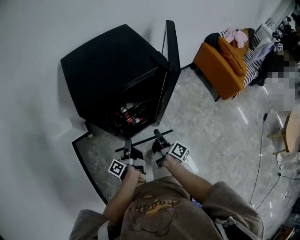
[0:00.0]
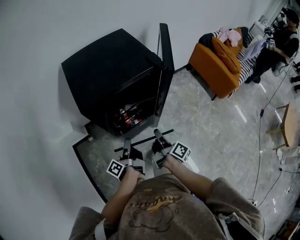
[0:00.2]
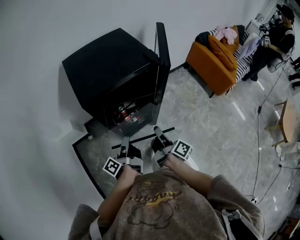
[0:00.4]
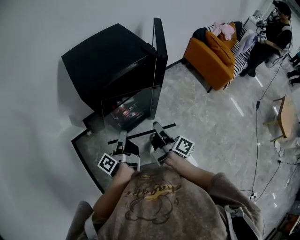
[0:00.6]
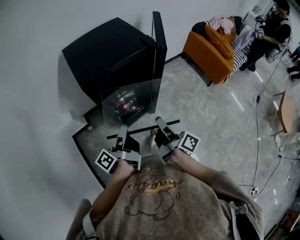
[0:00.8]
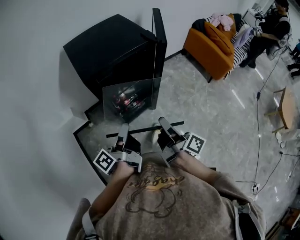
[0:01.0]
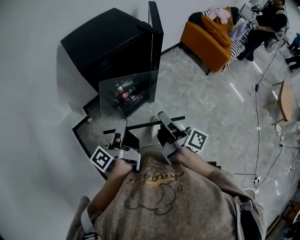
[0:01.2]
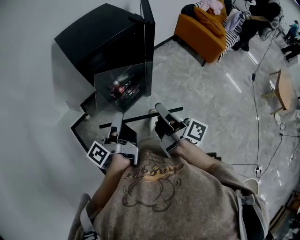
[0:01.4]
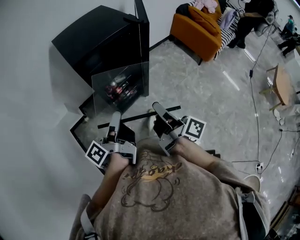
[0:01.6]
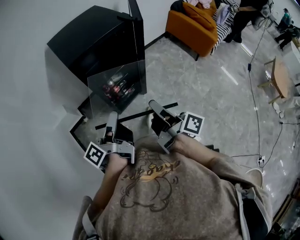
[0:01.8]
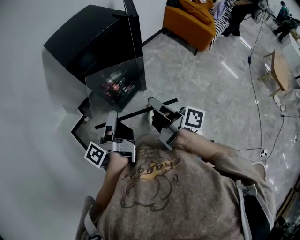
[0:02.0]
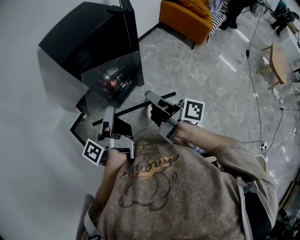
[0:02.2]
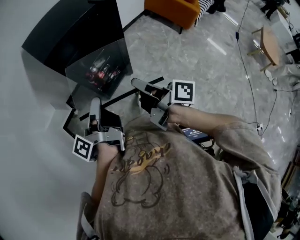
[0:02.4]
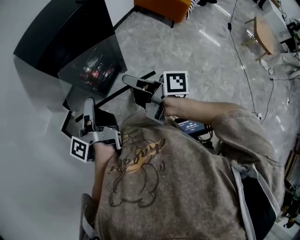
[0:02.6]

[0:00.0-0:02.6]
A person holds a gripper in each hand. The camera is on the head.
0:00.0 to 0:01.2: The grippers both shift upward and backward by about 25 cm. The left gripper swivels some 20 degrees.
0:01.2 to 0:02.6: There are only small adjustments of the grippers.

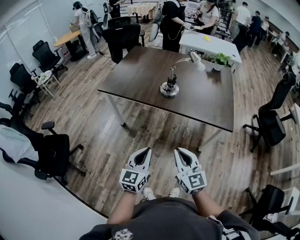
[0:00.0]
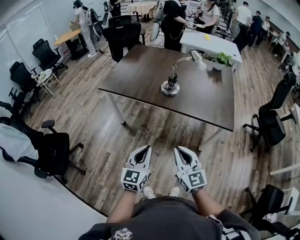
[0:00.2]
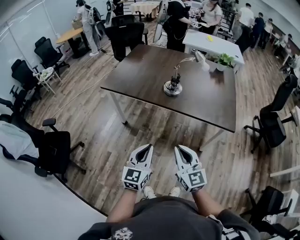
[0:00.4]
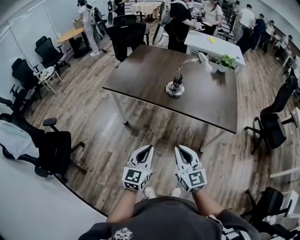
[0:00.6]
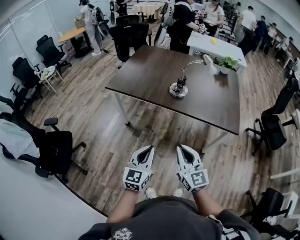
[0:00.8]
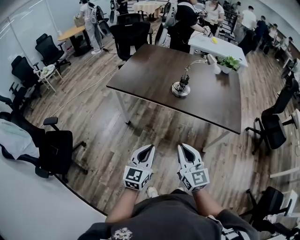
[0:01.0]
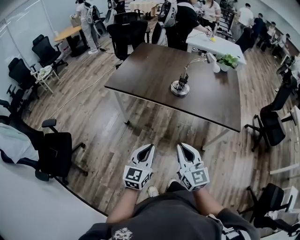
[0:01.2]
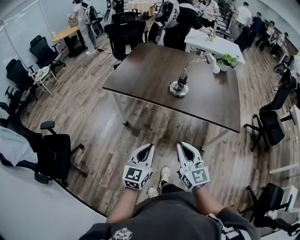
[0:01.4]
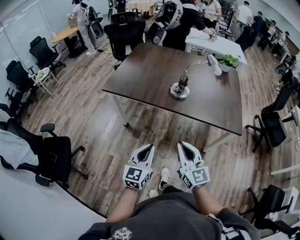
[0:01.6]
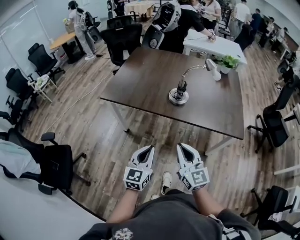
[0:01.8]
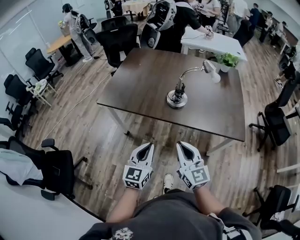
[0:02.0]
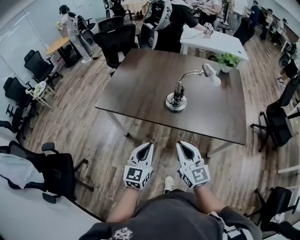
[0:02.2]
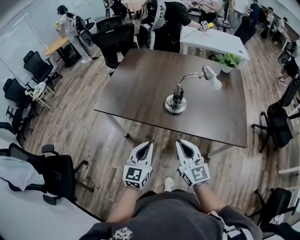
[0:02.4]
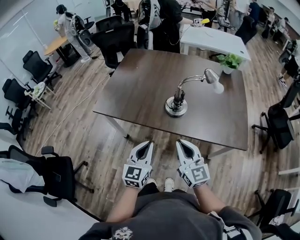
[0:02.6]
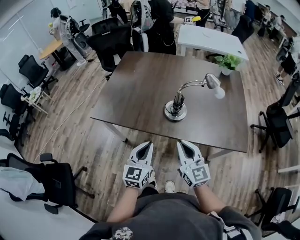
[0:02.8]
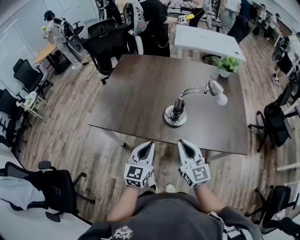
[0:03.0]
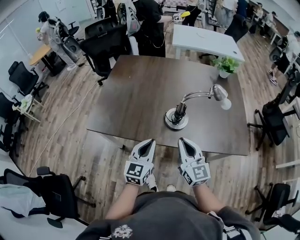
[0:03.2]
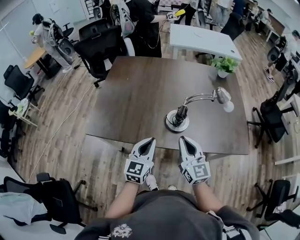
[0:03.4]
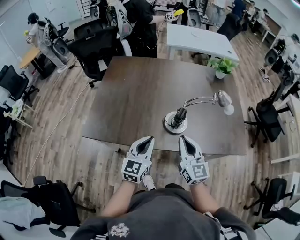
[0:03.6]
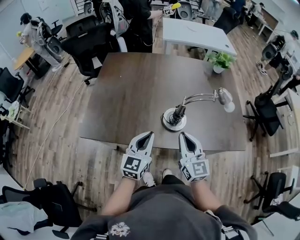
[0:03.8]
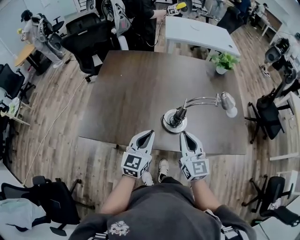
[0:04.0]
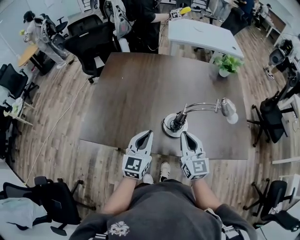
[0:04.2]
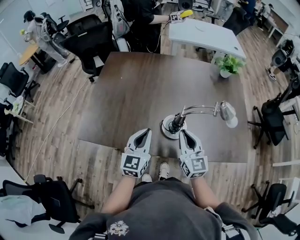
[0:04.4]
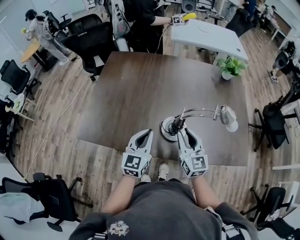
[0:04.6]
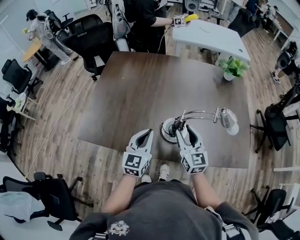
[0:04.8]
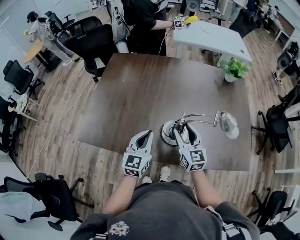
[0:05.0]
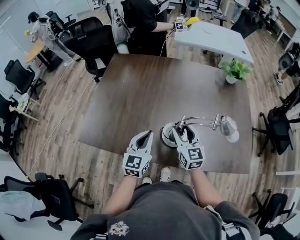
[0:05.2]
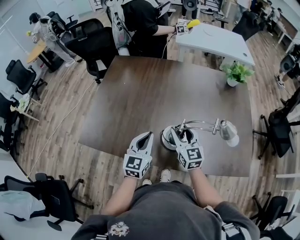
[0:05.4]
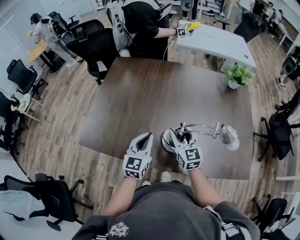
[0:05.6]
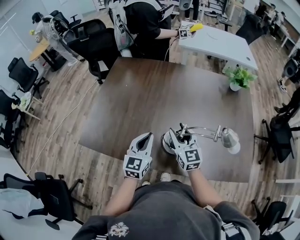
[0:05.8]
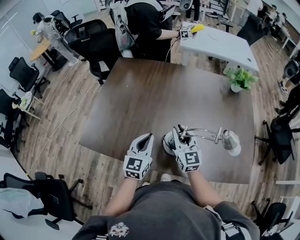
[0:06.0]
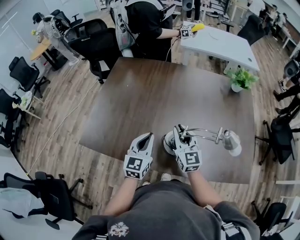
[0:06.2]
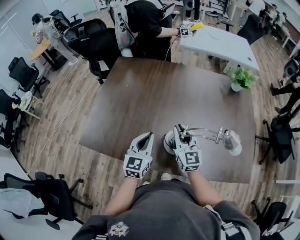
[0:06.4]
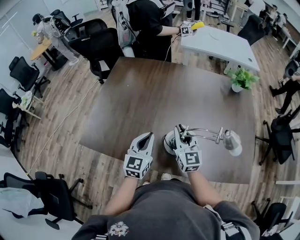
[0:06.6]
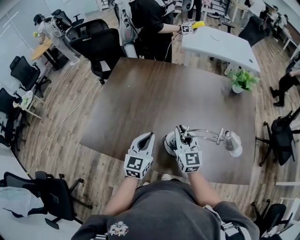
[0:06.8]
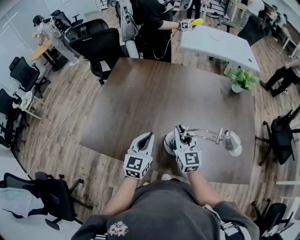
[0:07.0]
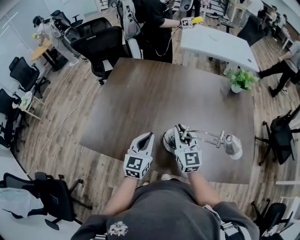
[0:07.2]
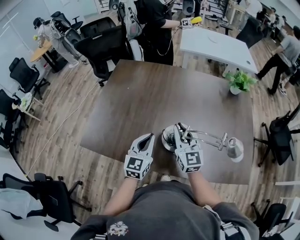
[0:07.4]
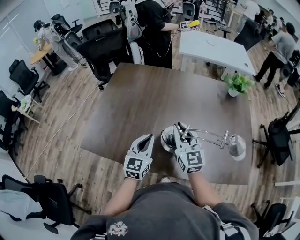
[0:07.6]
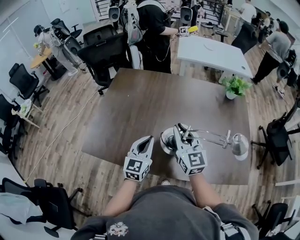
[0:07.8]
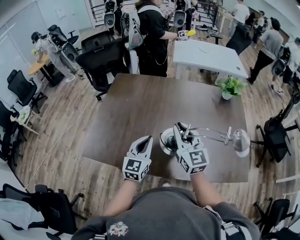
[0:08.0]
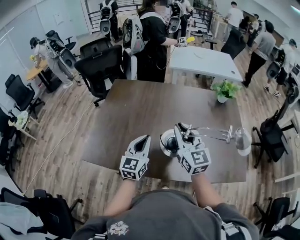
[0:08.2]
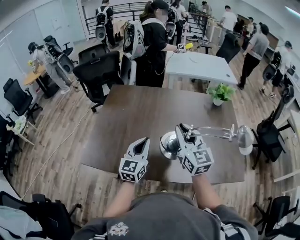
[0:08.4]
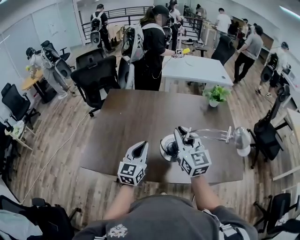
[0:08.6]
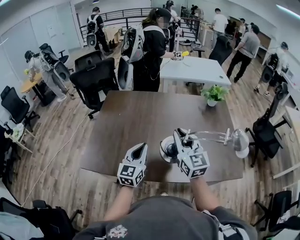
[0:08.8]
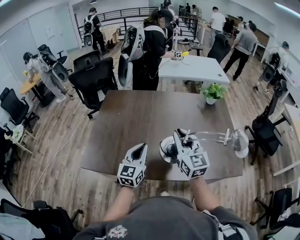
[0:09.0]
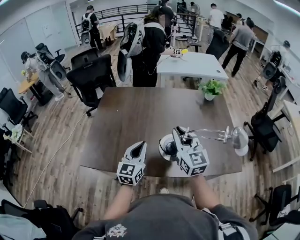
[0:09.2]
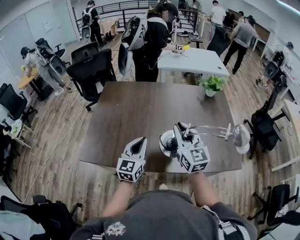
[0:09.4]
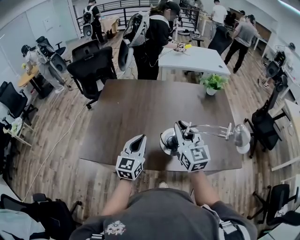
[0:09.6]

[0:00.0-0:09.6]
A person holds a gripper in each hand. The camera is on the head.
0:00.0 to 0:01.6: The grippers both shift to the left and forward by some 10 cm.
0:01.6 to 0:03.2: Both grippers move forward, approximately 30 cm.
0:03.2 to 0:04.8: Both grippers move forward, approximately 15 cm. The right gripper opens its fingers.
0:04.8 to 0:06.4: The right gripper shifts approximately 10 cm forward, and closes. The left gripper goes roughly 5 cm forward.
0:06.4 to 0:08.0: The left gripper travels upward by approximately 5 cm, while the right gripper moves upward, roughly 10 cm.
0:08.0 to 0:09.6: The grippers both shift backward by about 5 cm.

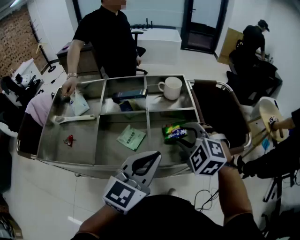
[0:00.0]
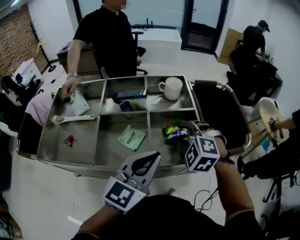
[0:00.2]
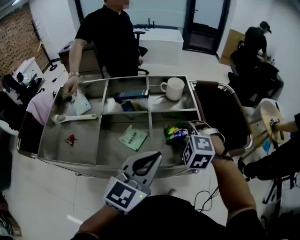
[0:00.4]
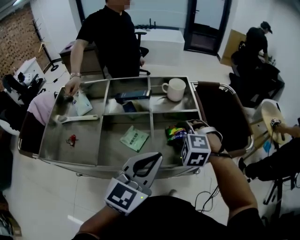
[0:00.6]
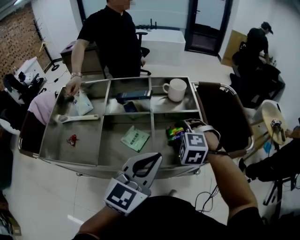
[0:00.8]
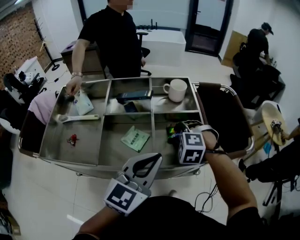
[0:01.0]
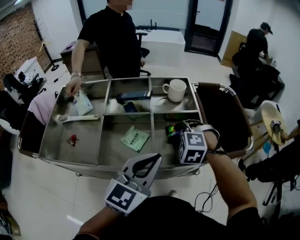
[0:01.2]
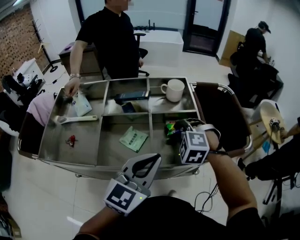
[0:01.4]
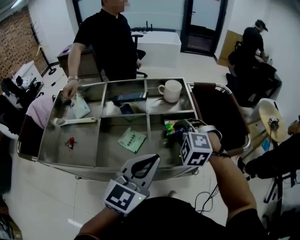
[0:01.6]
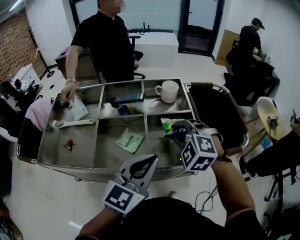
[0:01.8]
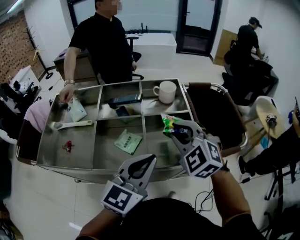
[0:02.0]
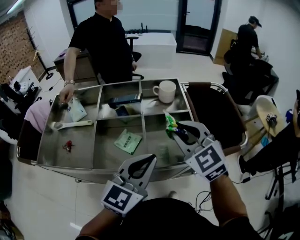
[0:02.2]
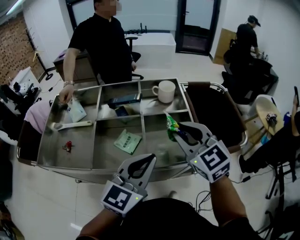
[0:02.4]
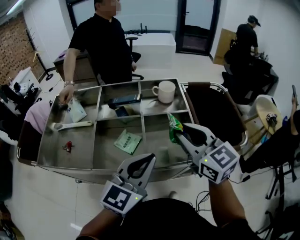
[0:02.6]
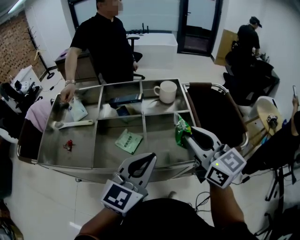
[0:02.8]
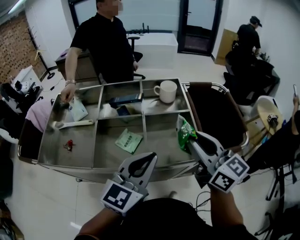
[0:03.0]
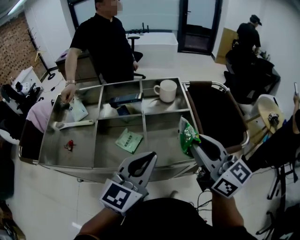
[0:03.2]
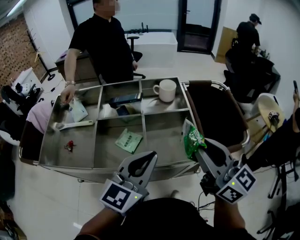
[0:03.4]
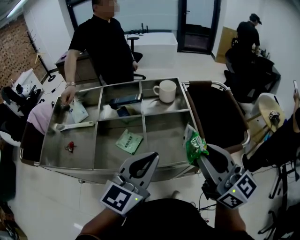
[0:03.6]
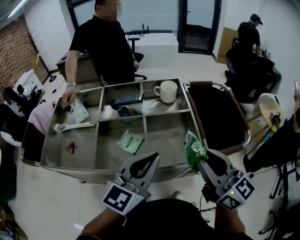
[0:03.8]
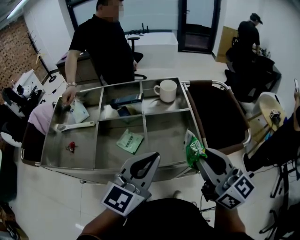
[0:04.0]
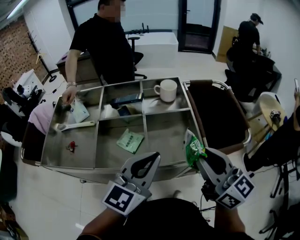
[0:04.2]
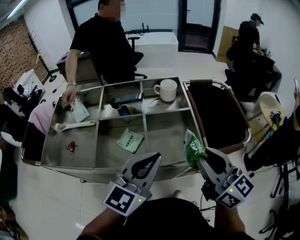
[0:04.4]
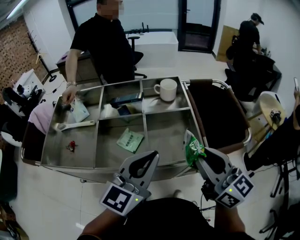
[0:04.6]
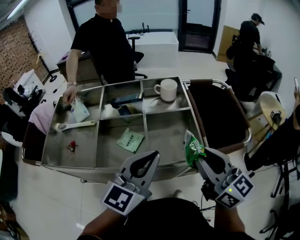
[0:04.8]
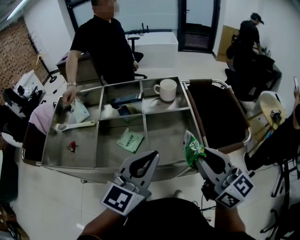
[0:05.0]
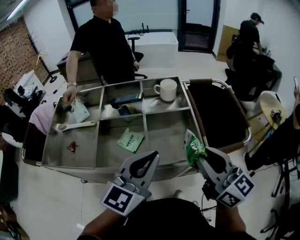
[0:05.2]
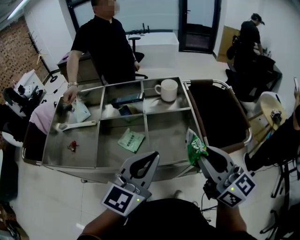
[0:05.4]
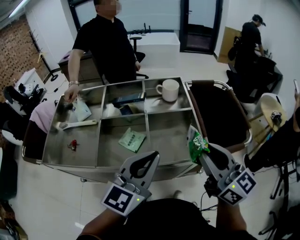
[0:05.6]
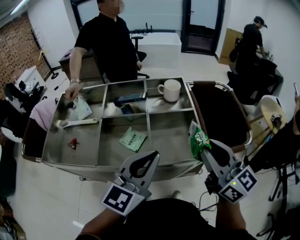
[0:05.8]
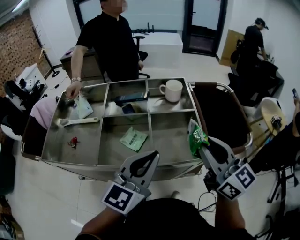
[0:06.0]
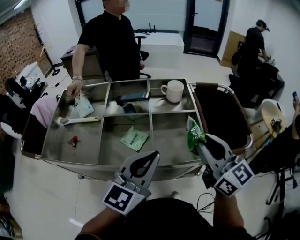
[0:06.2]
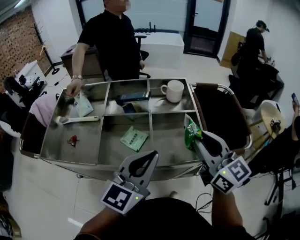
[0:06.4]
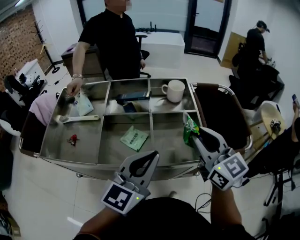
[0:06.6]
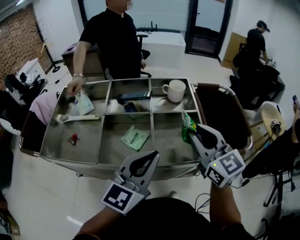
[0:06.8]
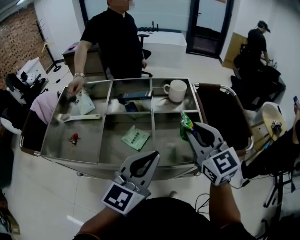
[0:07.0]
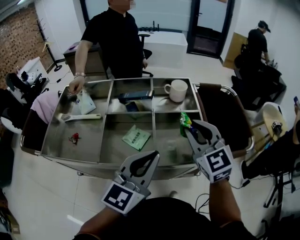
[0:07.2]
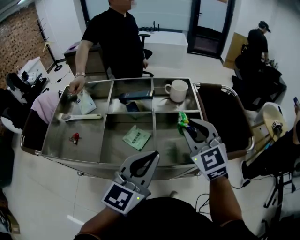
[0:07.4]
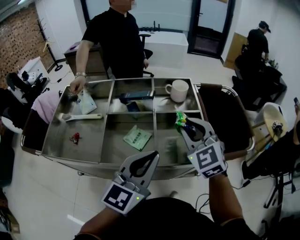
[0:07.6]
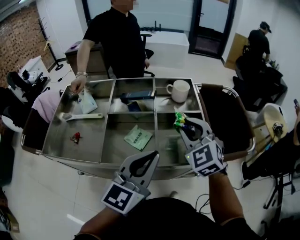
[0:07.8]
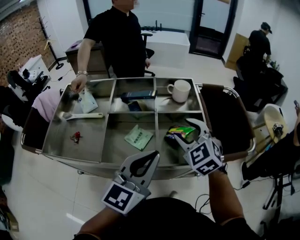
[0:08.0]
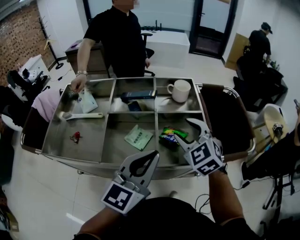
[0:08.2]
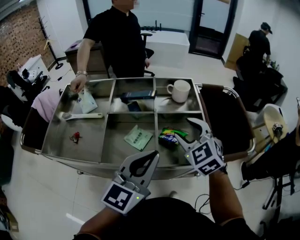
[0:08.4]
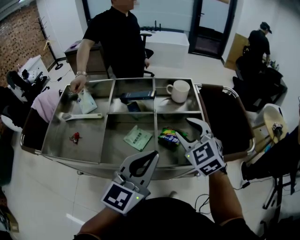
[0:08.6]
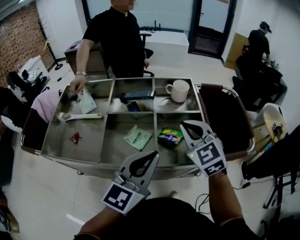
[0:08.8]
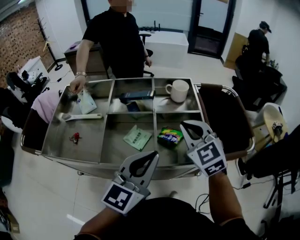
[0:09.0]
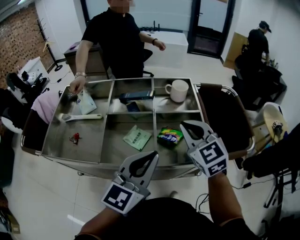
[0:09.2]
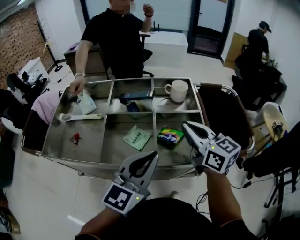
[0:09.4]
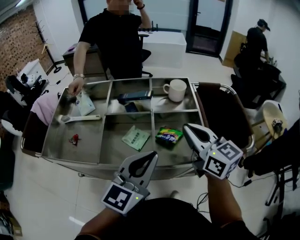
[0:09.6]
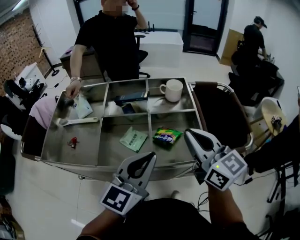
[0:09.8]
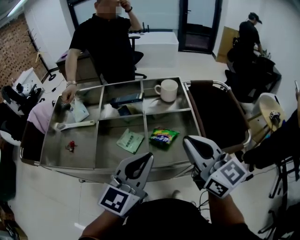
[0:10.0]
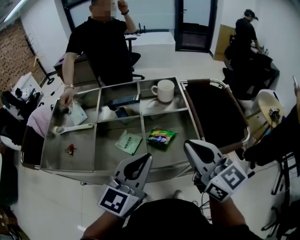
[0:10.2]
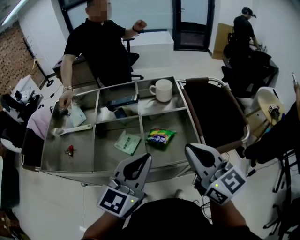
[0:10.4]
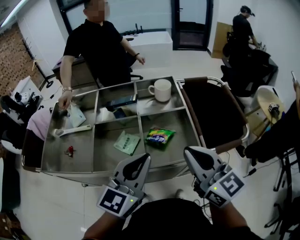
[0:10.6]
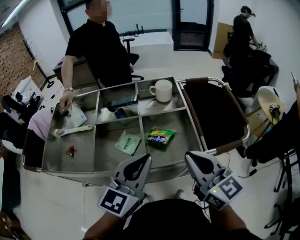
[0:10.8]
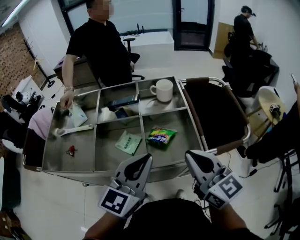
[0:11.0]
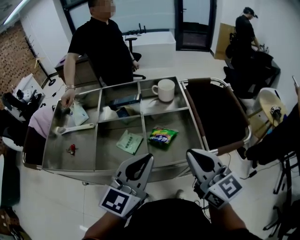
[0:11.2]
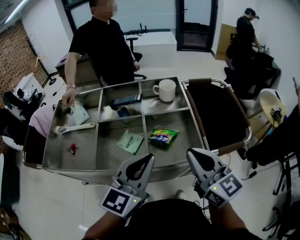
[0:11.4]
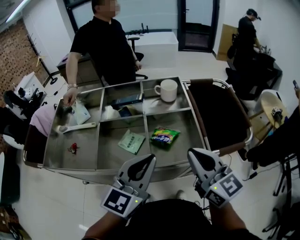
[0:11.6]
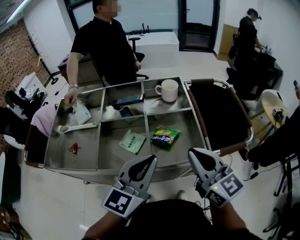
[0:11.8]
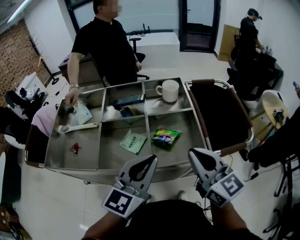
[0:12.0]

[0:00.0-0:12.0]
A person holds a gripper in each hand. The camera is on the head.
0:00.0 to 0:01.6: The right gripper closes its fingers.
0:01.6 to 0:03.0: The right gripper shifts approximately 15 cm upward, backward and to the right, and tips its fingers upward by approximately 50 degrees.
0:03.0 to 0:04.4: The right gripper is displaced backward by some 5 cm.
0:04.4 to 0:06.0: The grippers move only a little.
0:06.0 to 0:07.6: The right gripper heads forward, to the left and downward, covering about 15 cm, and rotates roughly 40 degrees.
0:07.6 to 0:09.0: The right gripper opens, then closes once more.
0:09.0 to 0:10.4: The right gripper moves backward and to the right, roughly 10 cm, and changes its angle by about 40 degrees.
0:10.4 to 0:12.0: The grippers stay close to where they were, moving slightly.
